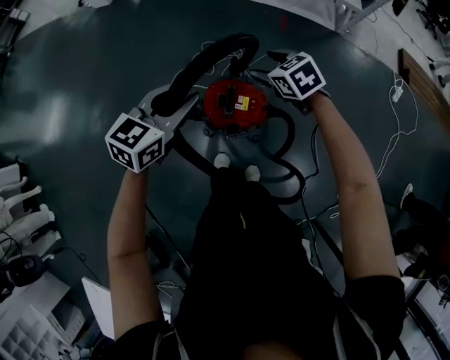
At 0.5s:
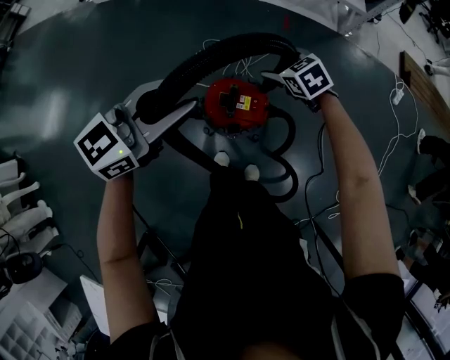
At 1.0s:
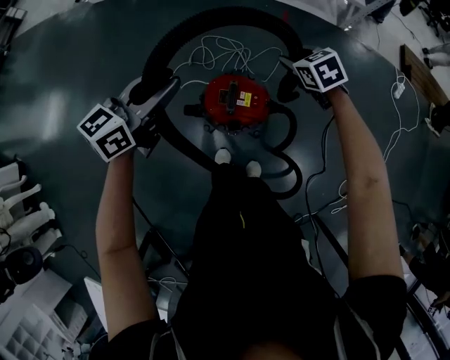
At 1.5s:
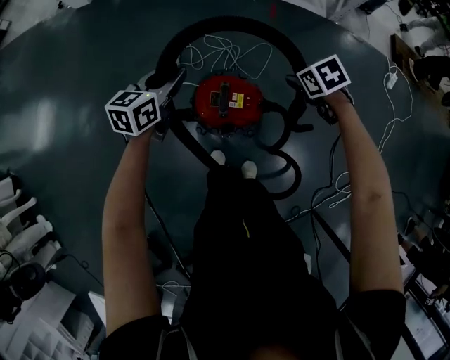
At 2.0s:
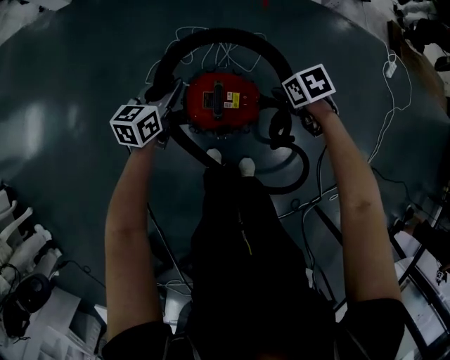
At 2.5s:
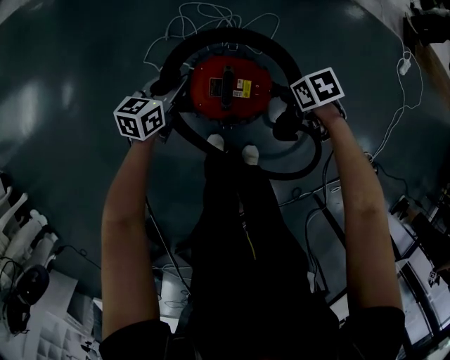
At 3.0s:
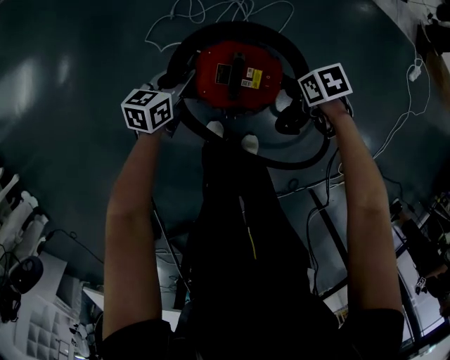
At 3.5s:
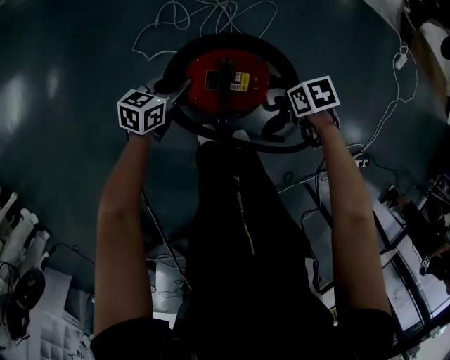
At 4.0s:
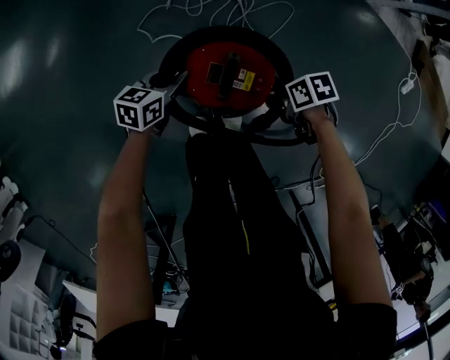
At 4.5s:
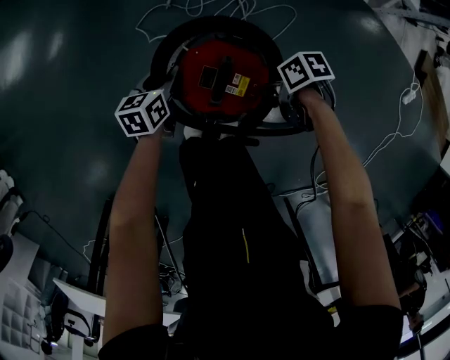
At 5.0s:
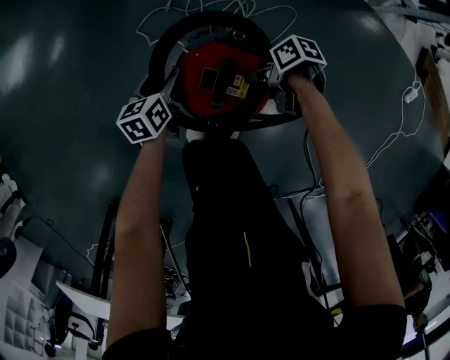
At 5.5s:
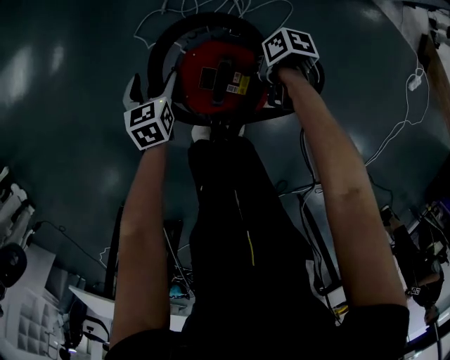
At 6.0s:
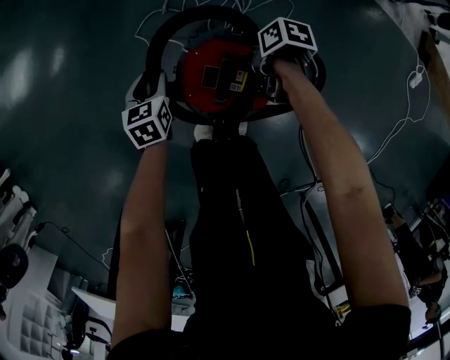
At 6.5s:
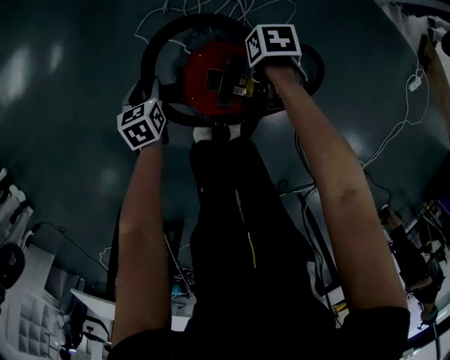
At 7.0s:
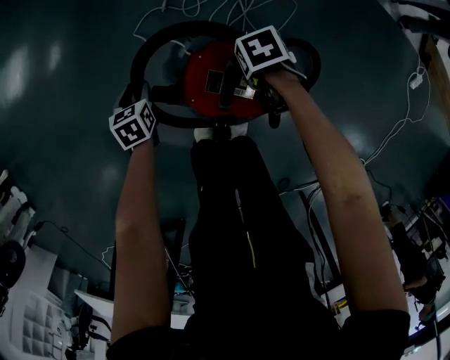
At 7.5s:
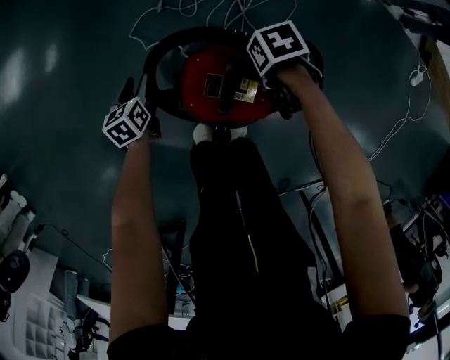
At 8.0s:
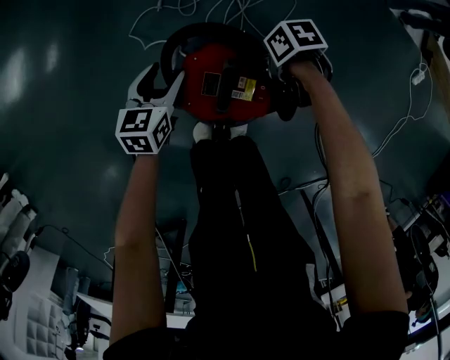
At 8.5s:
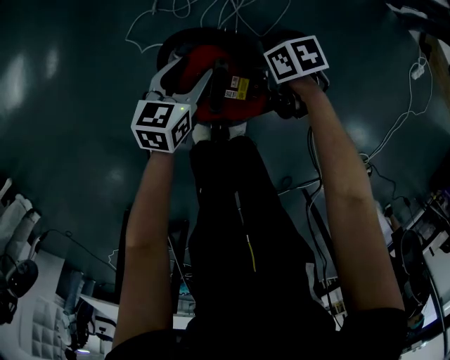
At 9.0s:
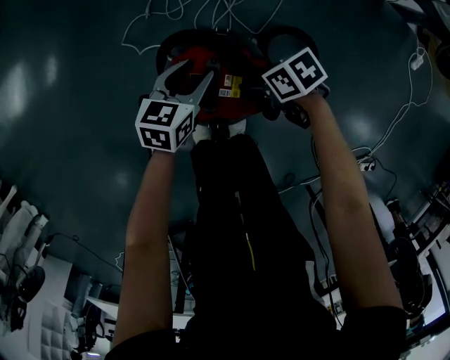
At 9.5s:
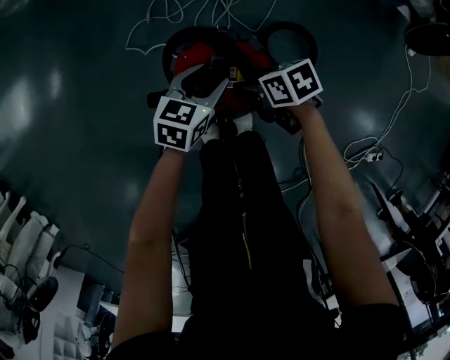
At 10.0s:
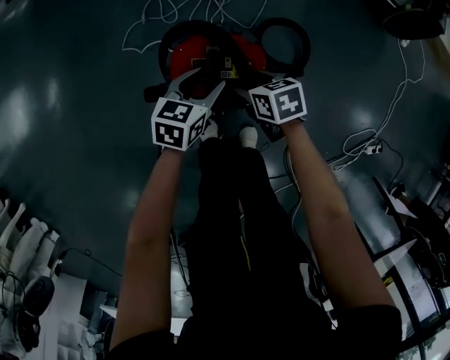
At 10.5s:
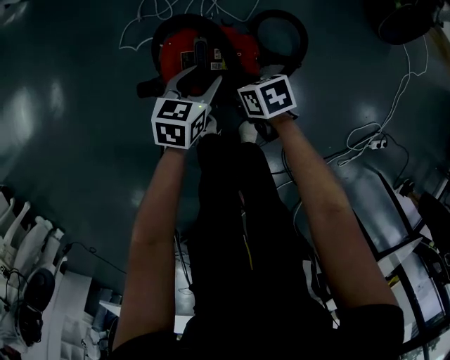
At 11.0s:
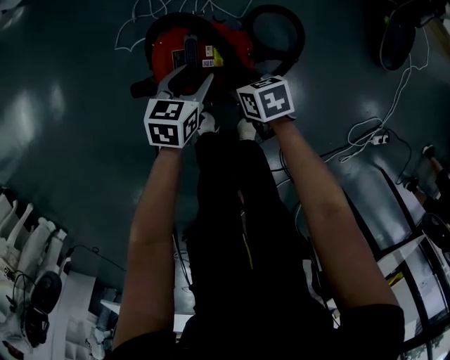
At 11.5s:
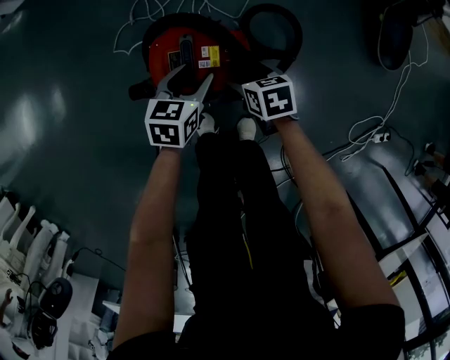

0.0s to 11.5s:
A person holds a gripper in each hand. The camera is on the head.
0.0s to 2.0s: The right gripper is displaced downward and to the right by roughly 20 cm, swivels about 40 degrees, and closes its fingers. The left gripper is displaced downward and forward by approximately 25 cm.
2.0s to 4.0s: Both grippers travel together downward, about 15 cm. The right gripper turns by about 20 degrees.
4.0s to 6.0s: The right gripper changes place by roughly 10 cm, and rotates some 20 degrees, while the left gripper moves roughly 5 cm, turns by approximately 30 degrees, and opens, then closes again.
6.0s to 7.5s: The left gripper shifts approximately 5 cm downward; the right gripper swivels roughly 30 degrees.
7.5s to 9.5s: The left gripper changes place by about 25 cm, and turns by about 50 degrees, while the right gripper moves about 10 cm, and turns by some 30 degrees.
9.5s to 11.5s: The right gripper changes place by approximately 10 cm, and swivels roughly 30 degrees, while the left gripper moves some 5 cm.

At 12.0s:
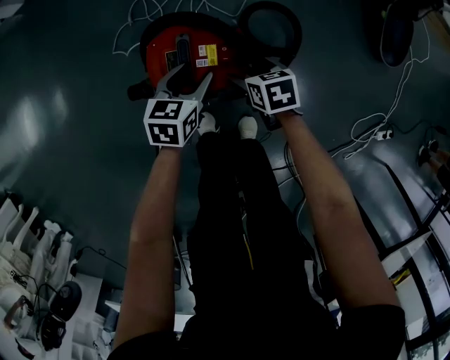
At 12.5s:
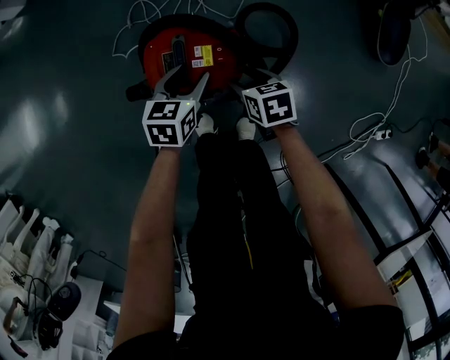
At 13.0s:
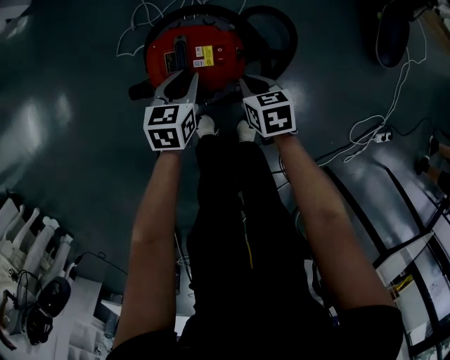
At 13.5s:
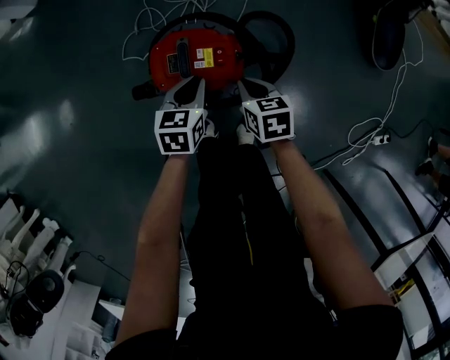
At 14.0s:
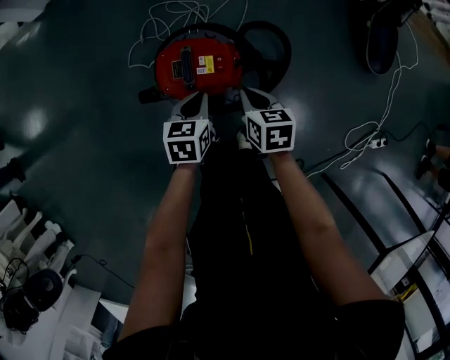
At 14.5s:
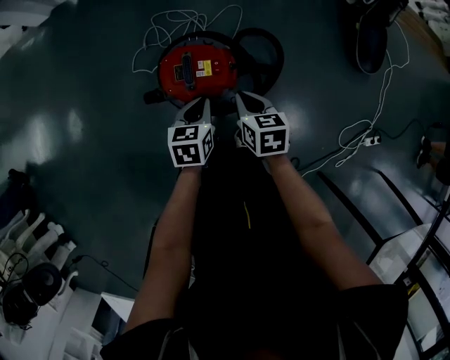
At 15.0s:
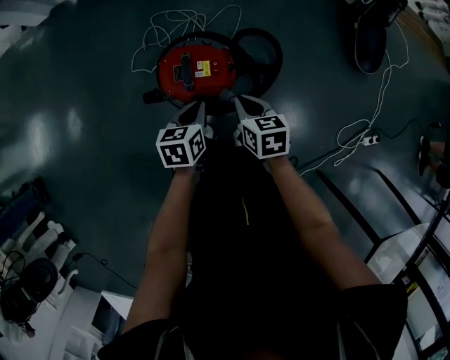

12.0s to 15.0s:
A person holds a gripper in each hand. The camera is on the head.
12.0s to 13.5s: The left gripper moves about 5 cm, and closes up; the right gripper moves upward, roughly 5 cm, and closes its fingers.
13.5s to 15.0s: The right gripper shifts approximately 10 cm upward. The left gripper heads upward and backward, covering some 10 cm.

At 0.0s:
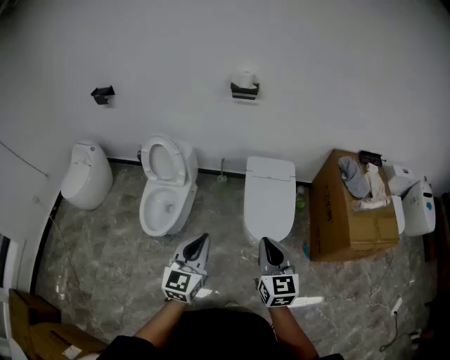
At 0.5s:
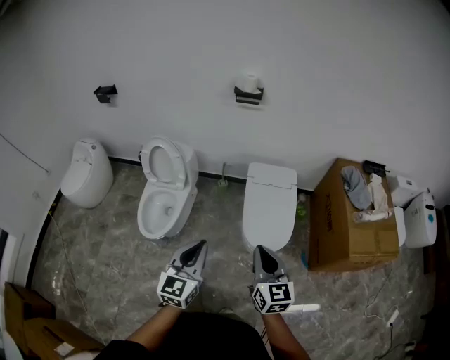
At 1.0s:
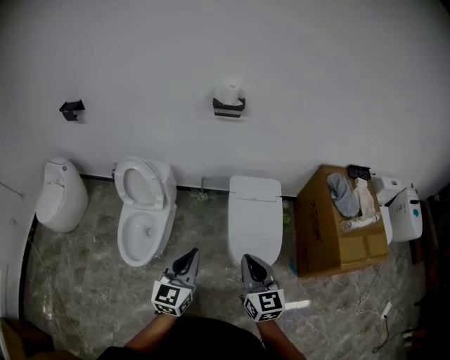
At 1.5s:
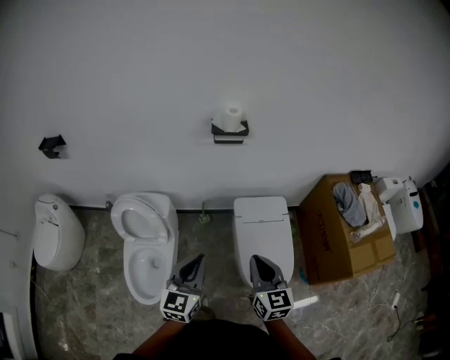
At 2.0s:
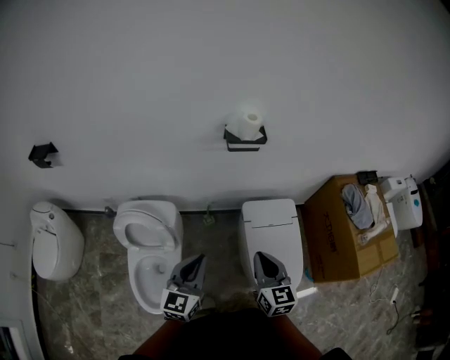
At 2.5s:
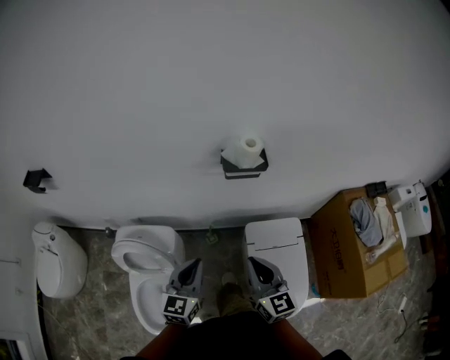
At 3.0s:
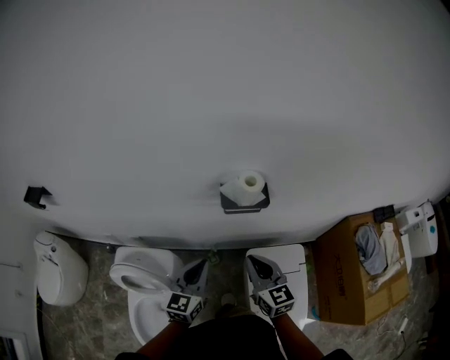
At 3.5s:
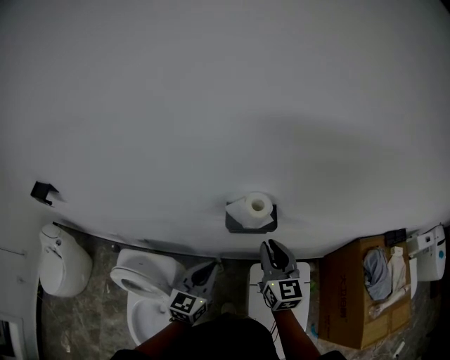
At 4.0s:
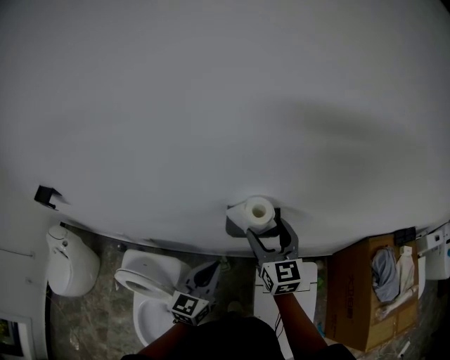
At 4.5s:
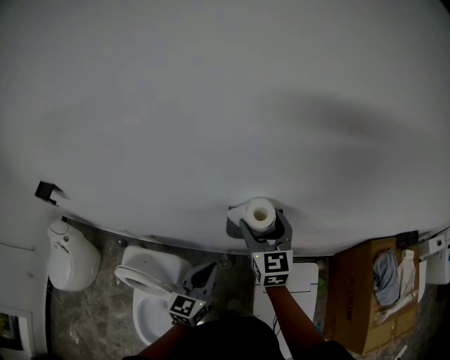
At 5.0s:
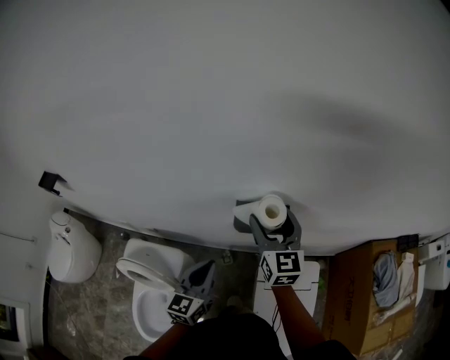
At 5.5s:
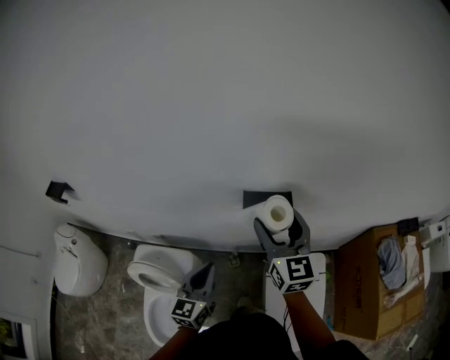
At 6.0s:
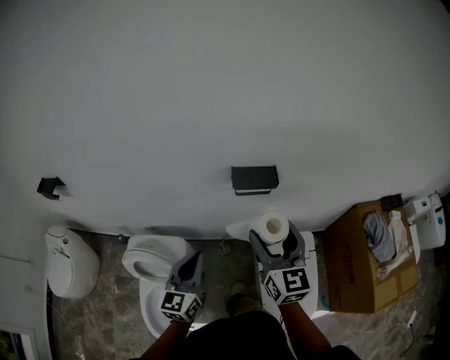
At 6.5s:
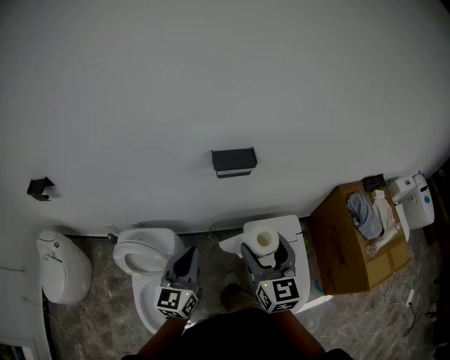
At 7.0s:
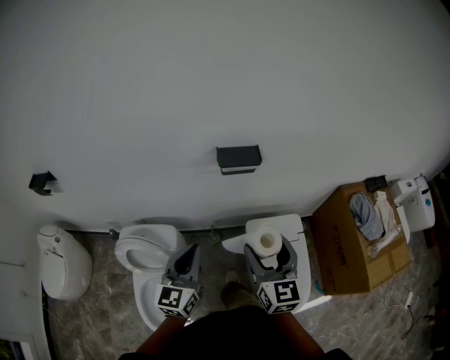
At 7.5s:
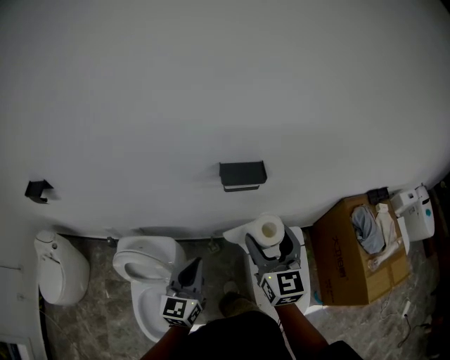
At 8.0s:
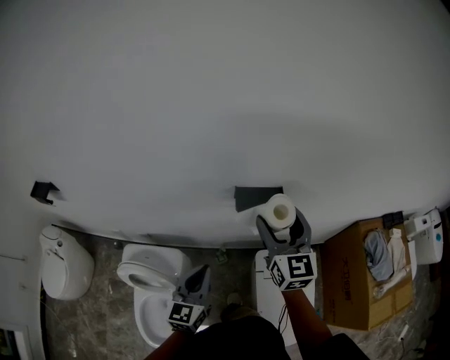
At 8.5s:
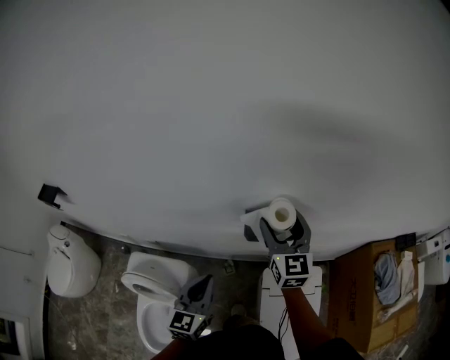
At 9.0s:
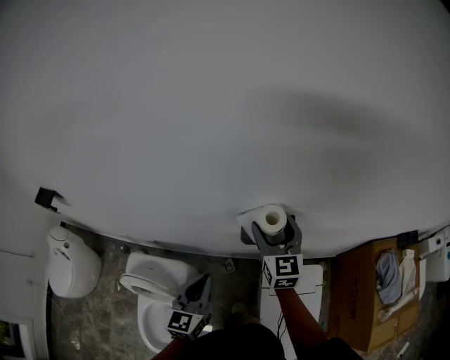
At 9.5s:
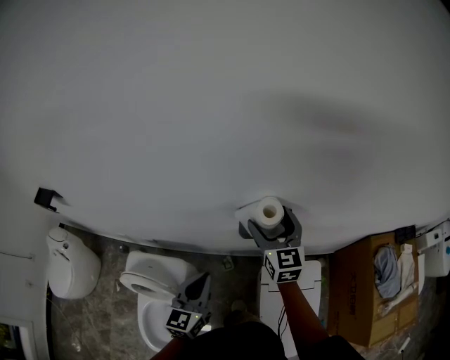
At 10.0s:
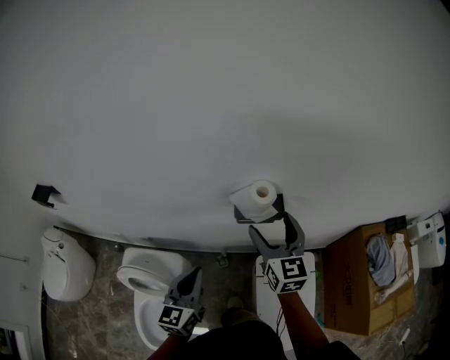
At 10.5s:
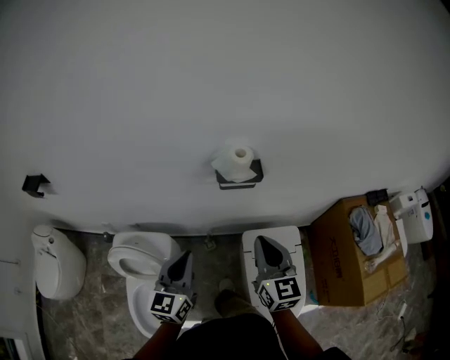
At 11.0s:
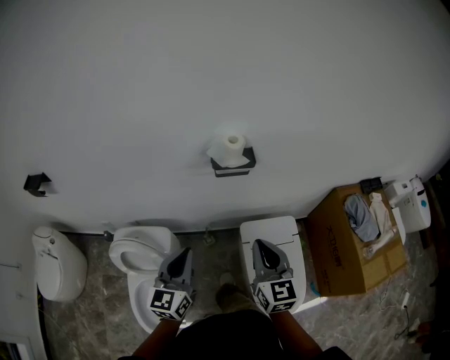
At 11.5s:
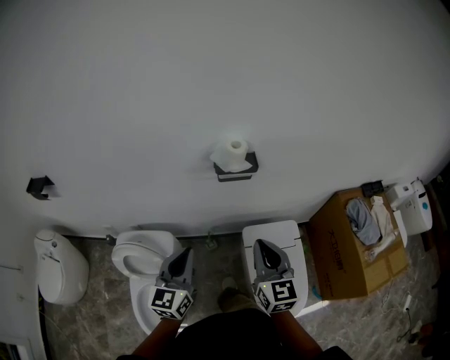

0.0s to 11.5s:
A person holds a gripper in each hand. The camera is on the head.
0.0s to 2.0s: The two grippers travel together, forward, approximately 50 cm.
2.0s to 4.0s: The grippers both shift forward by some 40 cm. The right gripper opens.
4.0s to 6.0s: The left gripper heads backward and to the left, covering some 20 cm, while the right gripper heads backward, covering approximately 20 cm.
6.0s to 7.5s: The right gripper goes backward and returns, roughly 10 cm each way.
7.5s to 9.5s: The left gripper travels forward by roughly 15 cm. The right gripper travels forward by approximately 25 cm.
9.5s to 11.5s: The right gripper goes some 35 cm backward, and closes, while the left gripper is displaced backward by about 20 cm.
